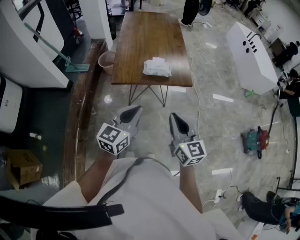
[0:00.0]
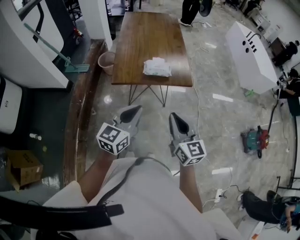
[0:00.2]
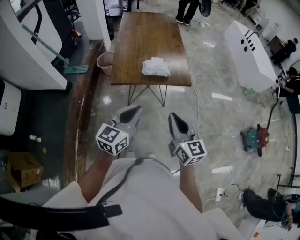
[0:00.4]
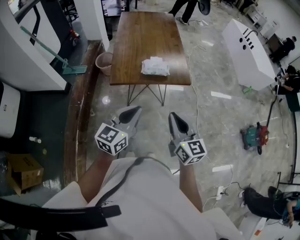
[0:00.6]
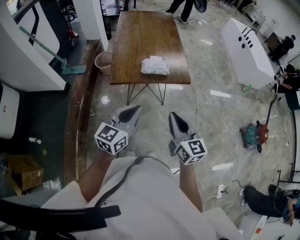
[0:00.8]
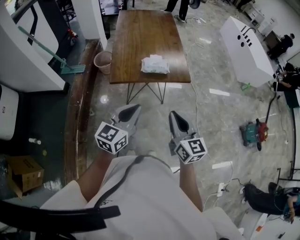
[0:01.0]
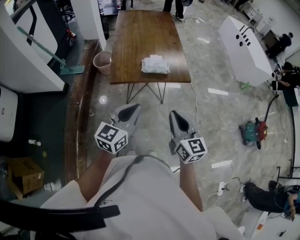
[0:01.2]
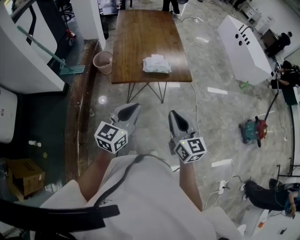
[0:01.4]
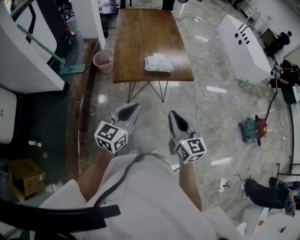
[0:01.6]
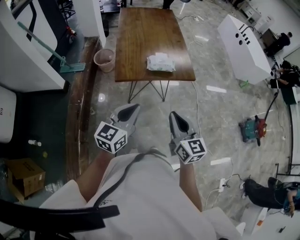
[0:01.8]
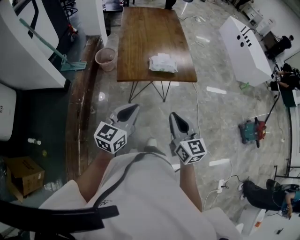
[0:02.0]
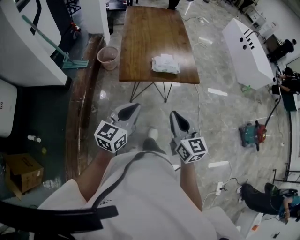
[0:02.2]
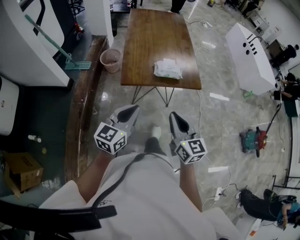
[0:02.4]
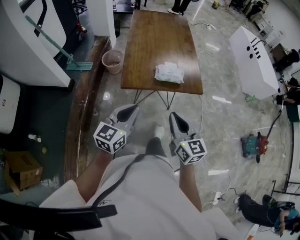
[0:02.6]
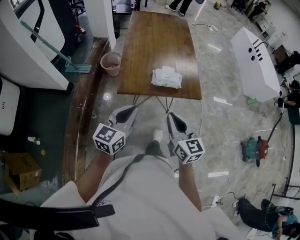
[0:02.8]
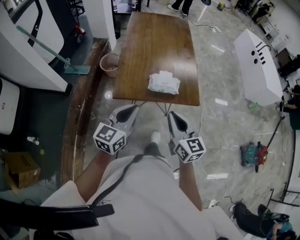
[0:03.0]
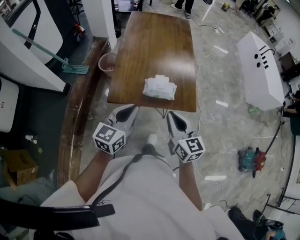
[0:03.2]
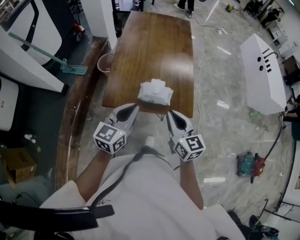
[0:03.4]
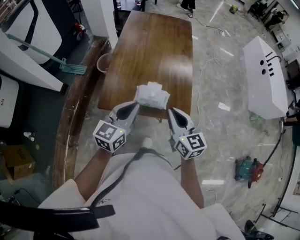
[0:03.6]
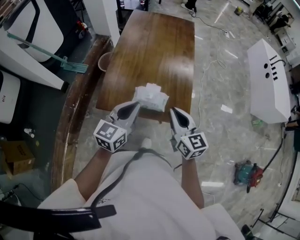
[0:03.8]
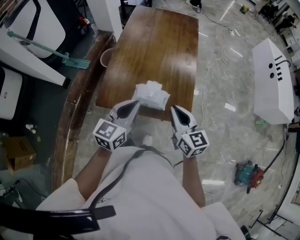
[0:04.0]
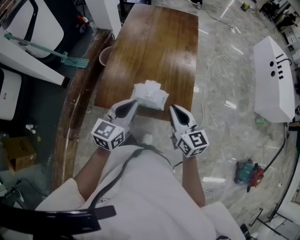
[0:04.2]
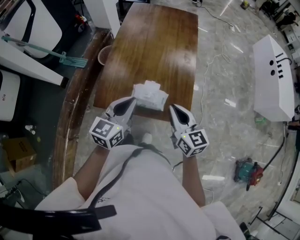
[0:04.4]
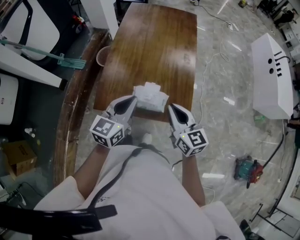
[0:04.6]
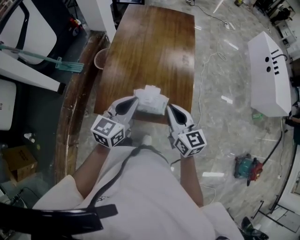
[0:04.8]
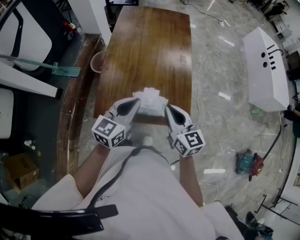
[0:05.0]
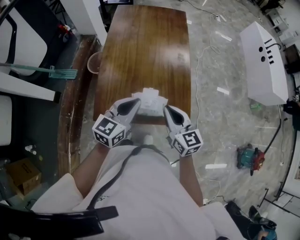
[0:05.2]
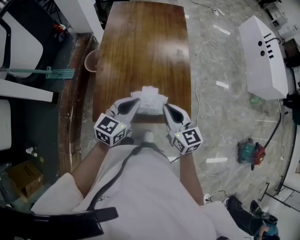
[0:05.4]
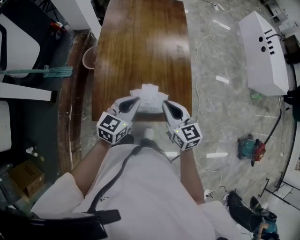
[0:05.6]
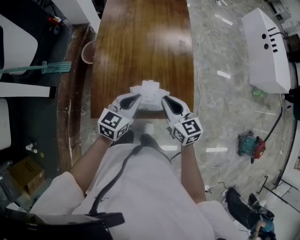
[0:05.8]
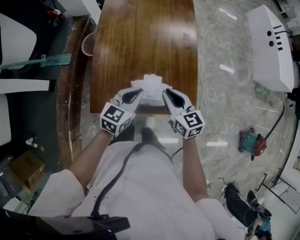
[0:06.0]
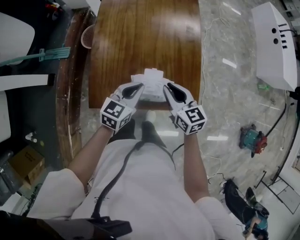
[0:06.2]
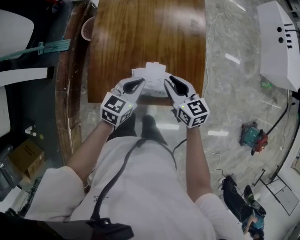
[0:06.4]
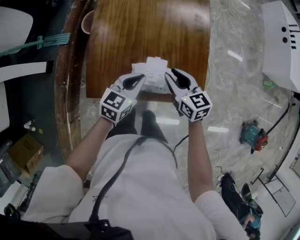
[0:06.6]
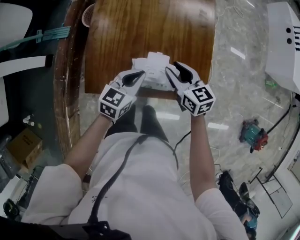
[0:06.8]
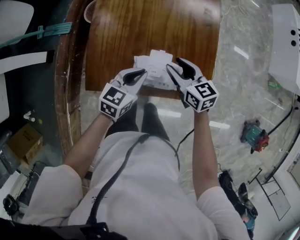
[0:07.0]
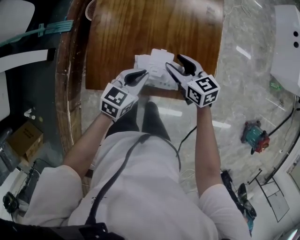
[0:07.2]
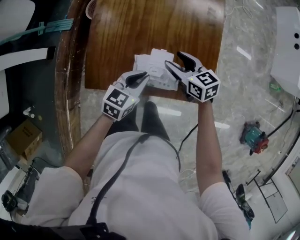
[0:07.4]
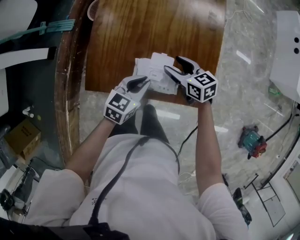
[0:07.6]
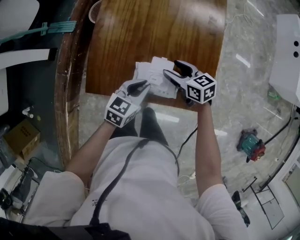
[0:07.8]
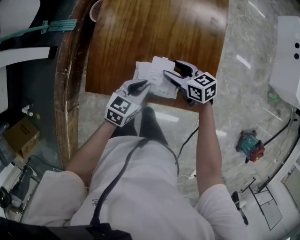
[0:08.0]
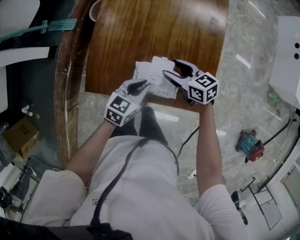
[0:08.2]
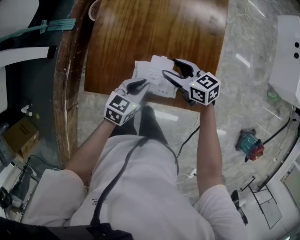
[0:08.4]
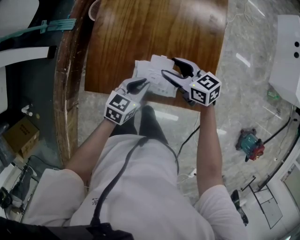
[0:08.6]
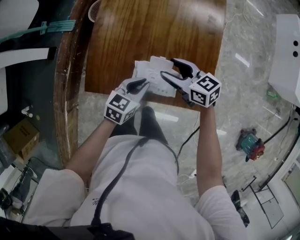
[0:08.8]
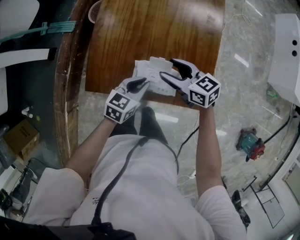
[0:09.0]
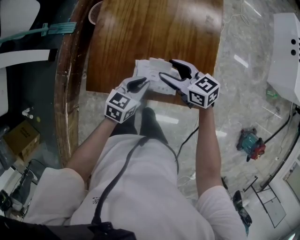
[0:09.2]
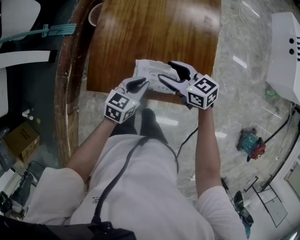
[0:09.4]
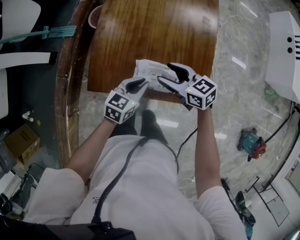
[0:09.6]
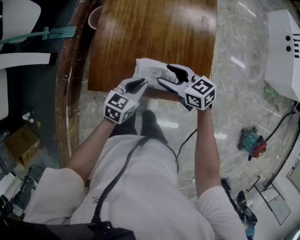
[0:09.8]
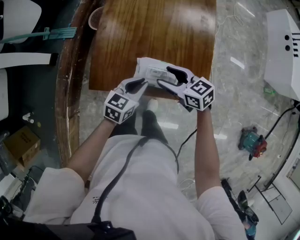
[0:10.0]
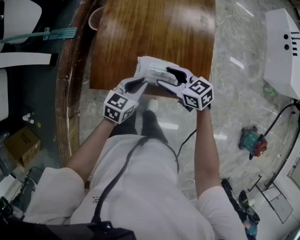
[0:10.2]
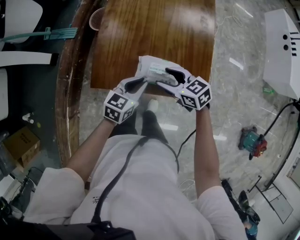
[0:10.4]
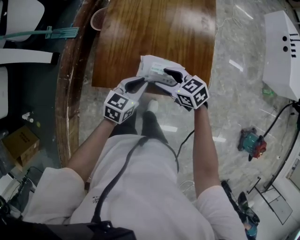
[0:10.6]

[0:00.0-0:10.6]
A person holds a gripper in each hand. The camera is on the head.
0:00.0 to 0:01.6: Both grippers travel together to the left, about 5 cm.
0:01.6 to 0:03.0: The two grippers go roughly 15 cm forward.
0:03.0 to 0:04.6: The two grippers go about 25 cm forward and to the right.
0:04.6 to 0:06.0: Both grippers travel together downward and forward, about 15 cm.
0:06.0 to 0:07.6: The left gripper moves downward, some 10 cm; the right gripper heads downward and forward, covering some 15 cm, swivels approximately 30 degrees, and opens its fingers.
0:07.6 to 0:09.0: The right gripper moves upward, about 5 cm.
0:09.0 to 0:10.6: The left gripper ends up about 5 cm from where it was. The right gripper moves backward, about 10 cm.

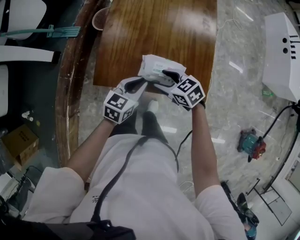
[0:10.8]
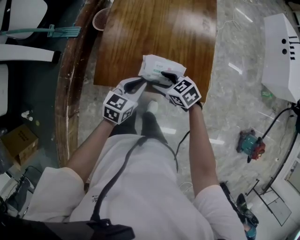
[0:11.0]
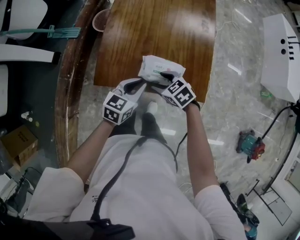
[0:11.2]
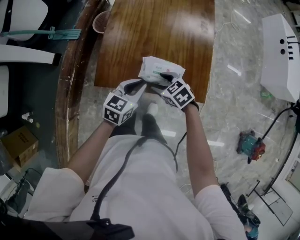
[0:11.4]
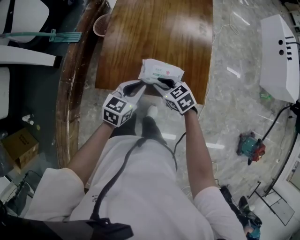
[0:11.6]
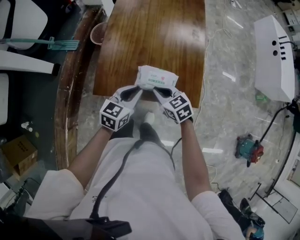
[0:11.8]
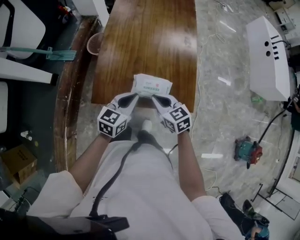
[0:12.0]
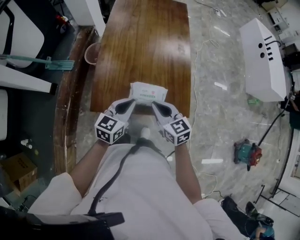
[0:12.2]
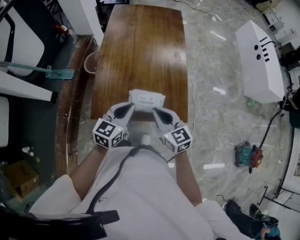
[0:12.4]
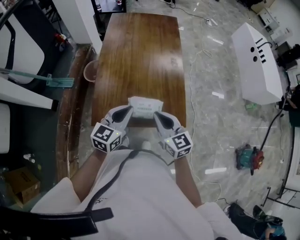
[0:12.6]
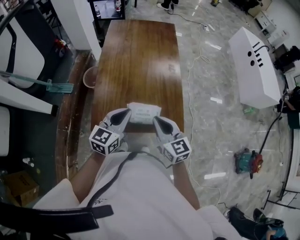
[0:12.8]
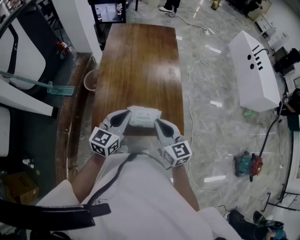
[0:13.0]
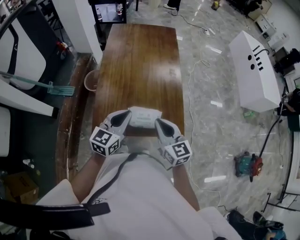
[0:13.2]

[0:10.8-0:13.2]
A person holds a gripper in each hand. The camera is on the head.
0:10.8 to 0:12.0: The two grippers go roughly 5 cm upward. The right gripper changes its angle by roughly 20 degrees, and closes up.
0:12.0 to 0:13.2: Both grippers travel together upward, roughly 10 cm. The right gripper turns by about 30 degrees.

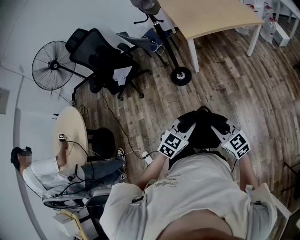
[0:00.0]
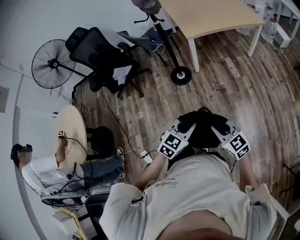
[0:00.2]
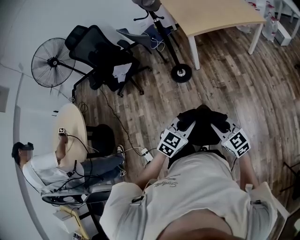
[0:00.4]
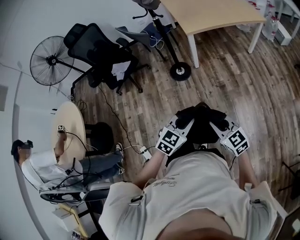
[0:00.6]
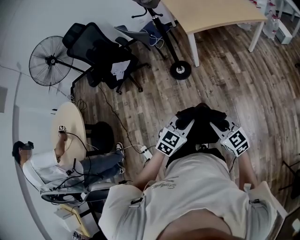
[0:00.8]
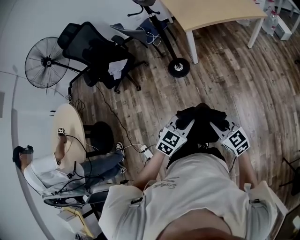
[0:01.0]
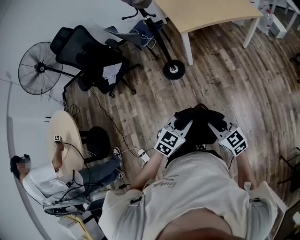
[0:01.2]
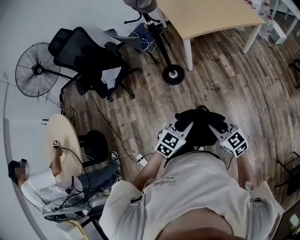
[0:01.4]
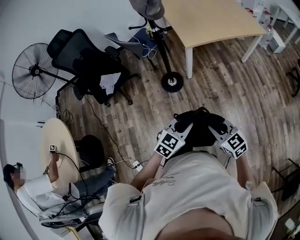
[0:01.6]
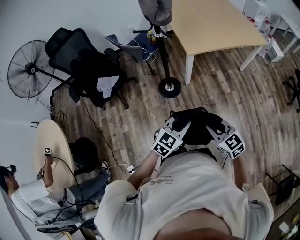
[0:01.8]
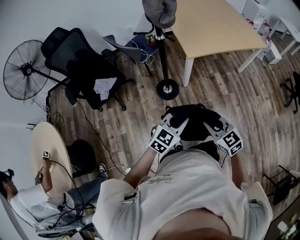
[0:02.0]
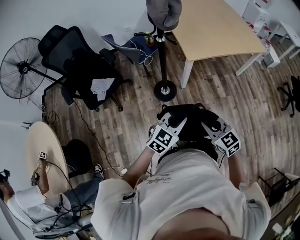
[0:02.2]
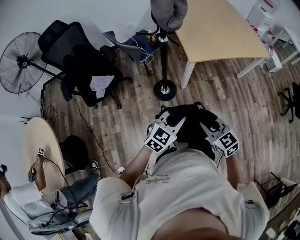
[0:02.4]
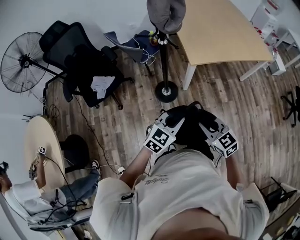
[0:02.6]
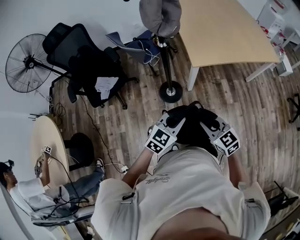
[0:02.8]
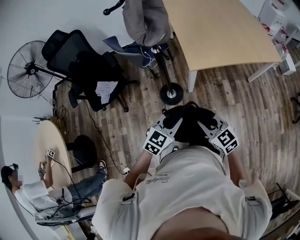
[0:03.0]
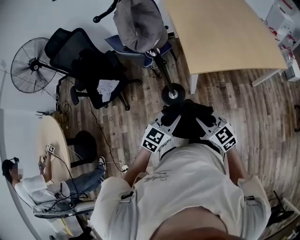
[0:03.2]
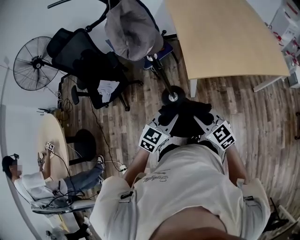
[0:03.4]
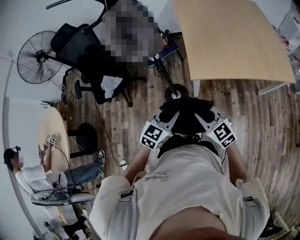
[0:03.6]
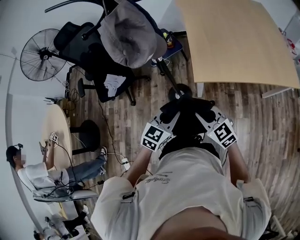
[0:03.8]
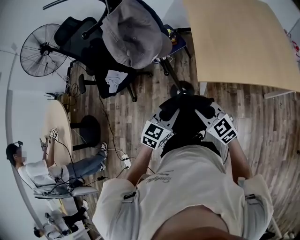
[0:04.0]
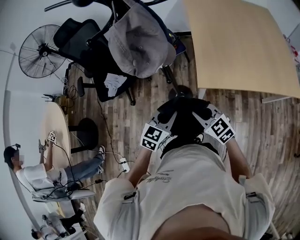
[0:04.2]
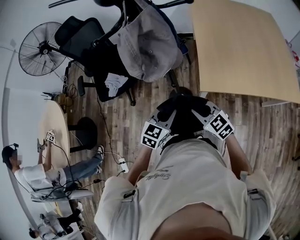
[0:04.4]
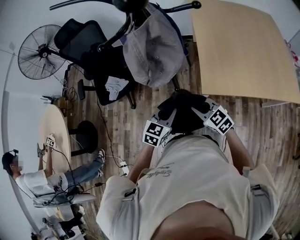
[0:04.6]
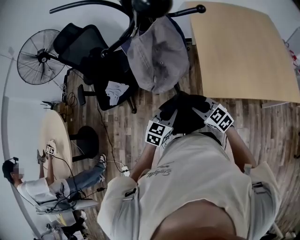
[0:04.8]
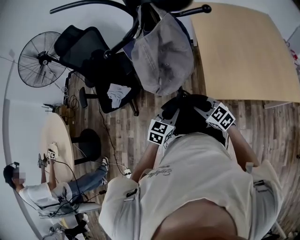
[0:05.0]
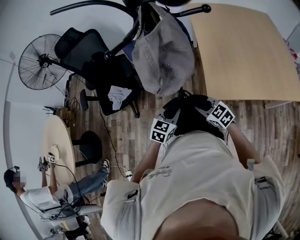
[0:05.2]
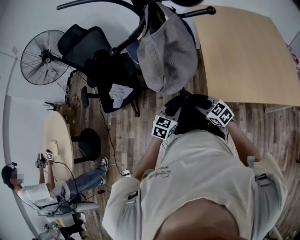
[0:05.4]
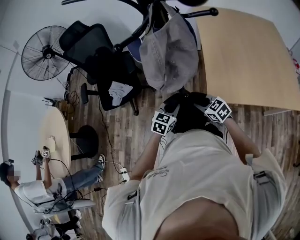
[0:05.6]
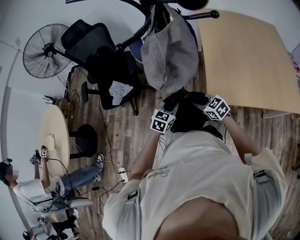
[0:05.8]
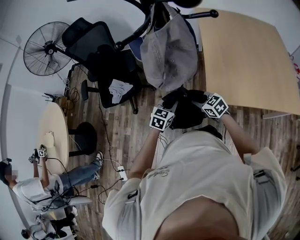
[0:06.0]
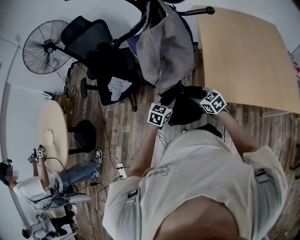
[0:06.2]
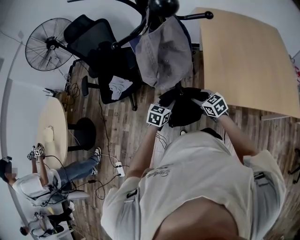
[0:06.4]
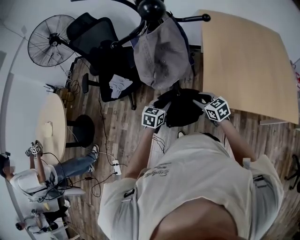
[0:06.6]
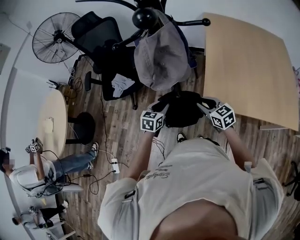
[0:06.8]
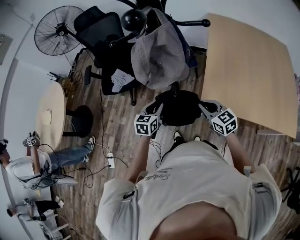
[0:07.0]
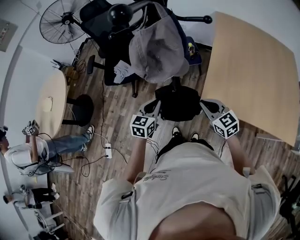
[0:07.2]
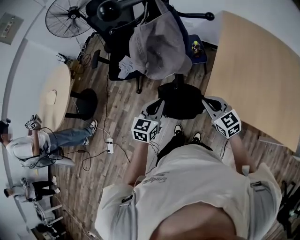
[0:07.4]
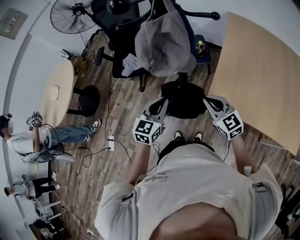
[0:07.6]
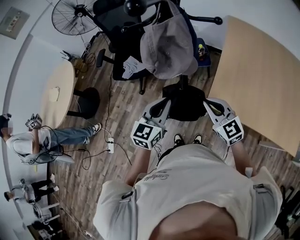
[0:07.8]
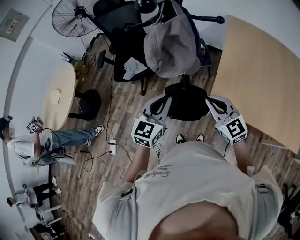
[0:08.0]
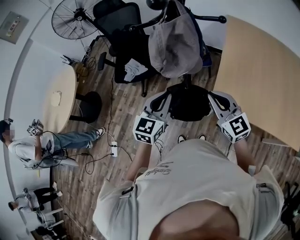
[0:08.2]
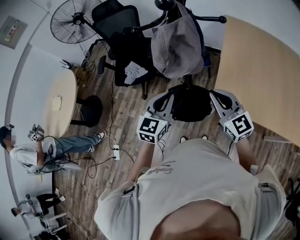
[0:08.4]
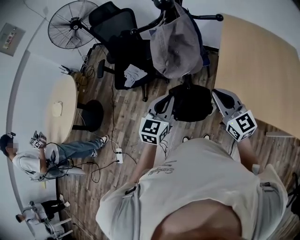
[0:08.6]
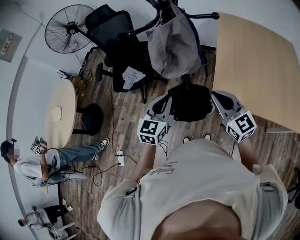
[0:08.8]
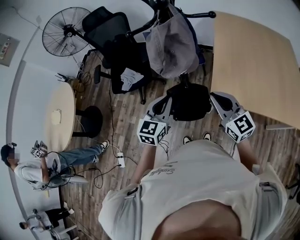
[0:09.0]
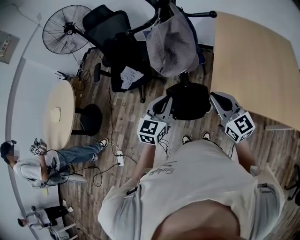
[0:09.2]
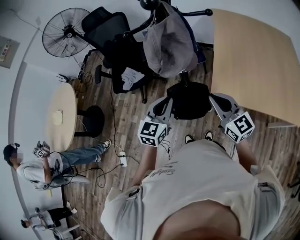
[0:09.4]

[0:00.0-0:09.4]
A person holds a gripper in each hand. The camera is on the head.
0:00.0 to 0:01.6: The two grippers go roughly 15 cm forward.
0:01.6 to 0:03.2: Both grippers move forward, roughly 30 cm.
0:03.2 to 0:04.8: Both grippers move forward, roughly 20 cm.
0:04.8 to 0:06.2: Both grippers travel together forward and downward, approximately 10 cm. The right gripper opens.
0:06.2 to 0:07.8: The grippers both shift upward and backward by approximately 20 cm. The right gripper changes its angle by about 30 degrees, and closes; the left gripper turns by approximately 30 degrees.

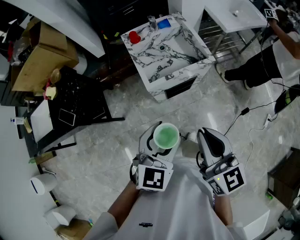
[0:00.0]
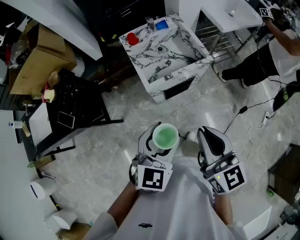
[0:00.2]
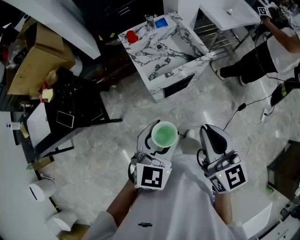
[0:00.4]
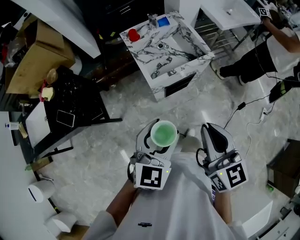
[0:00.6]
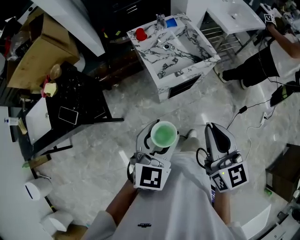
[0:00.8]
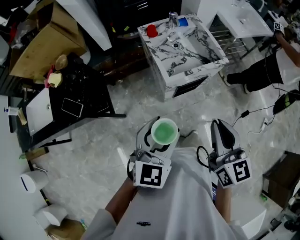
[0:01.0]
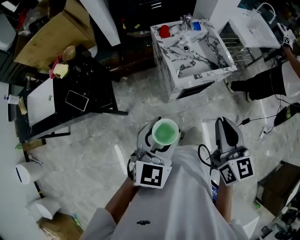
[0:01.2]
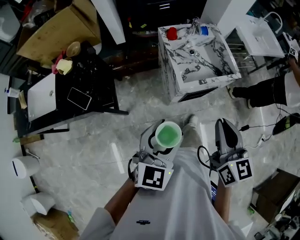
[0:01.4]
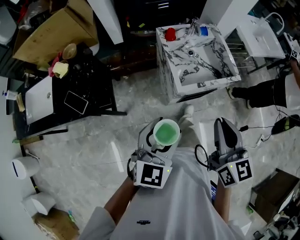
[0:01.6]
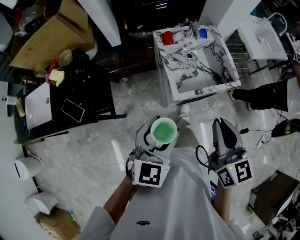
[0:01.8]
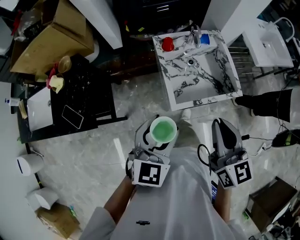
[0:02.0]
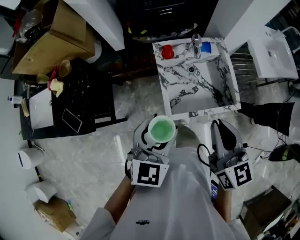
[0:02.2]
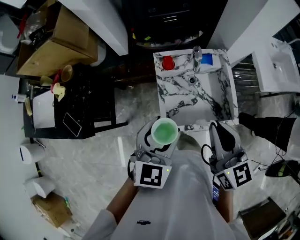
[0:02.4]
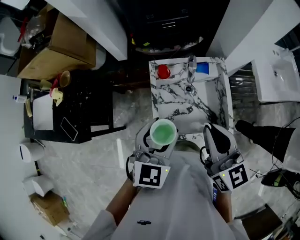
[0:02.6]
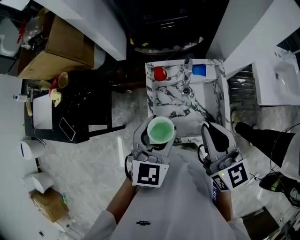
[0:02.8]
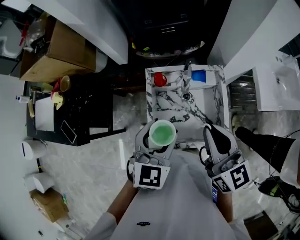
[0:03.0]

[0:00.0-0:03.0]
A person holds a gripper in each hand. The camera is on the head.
0:00.0 to 0:01.6: The left gripper shifts roughly 20 cm to the left; the right gripper travels to the left and forward by approximately 15 cm.
0:01.6 to 0:03.0: The two grippers go about 35 cm forward and to the right. The right gripper changes its angle by some 30 degrees.
